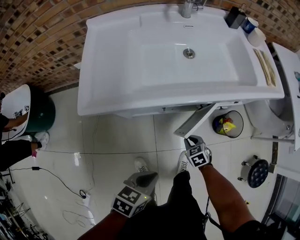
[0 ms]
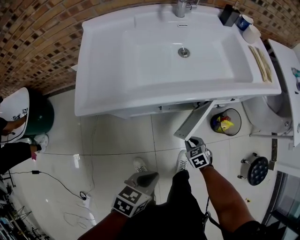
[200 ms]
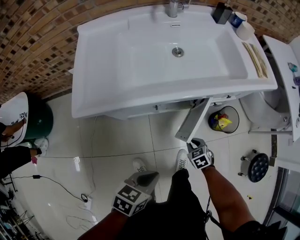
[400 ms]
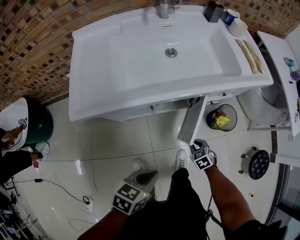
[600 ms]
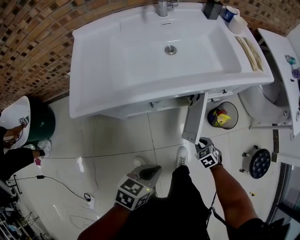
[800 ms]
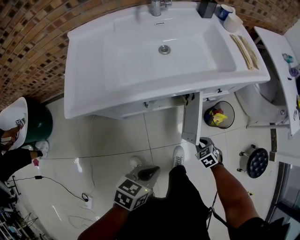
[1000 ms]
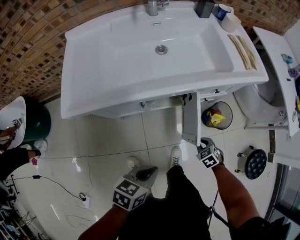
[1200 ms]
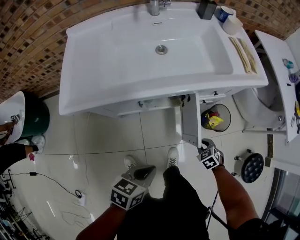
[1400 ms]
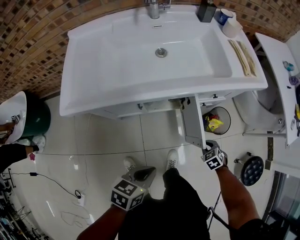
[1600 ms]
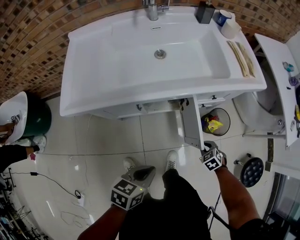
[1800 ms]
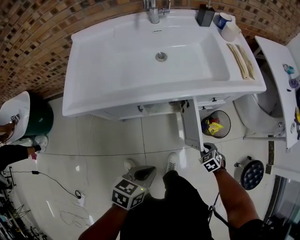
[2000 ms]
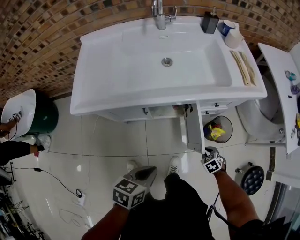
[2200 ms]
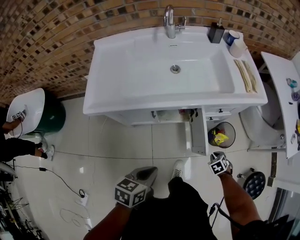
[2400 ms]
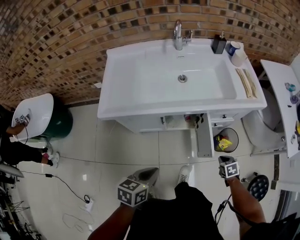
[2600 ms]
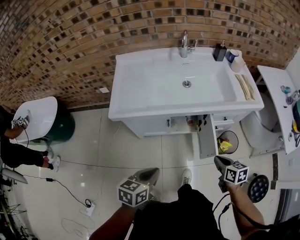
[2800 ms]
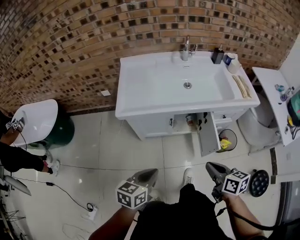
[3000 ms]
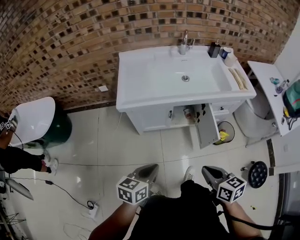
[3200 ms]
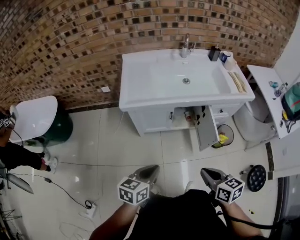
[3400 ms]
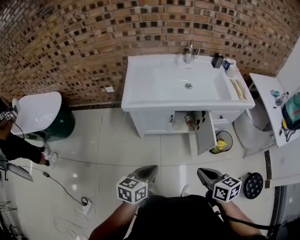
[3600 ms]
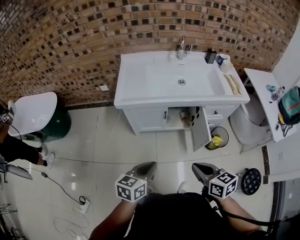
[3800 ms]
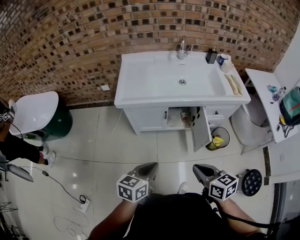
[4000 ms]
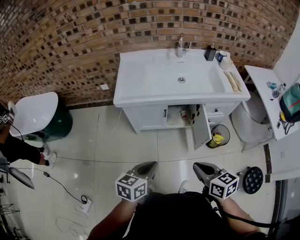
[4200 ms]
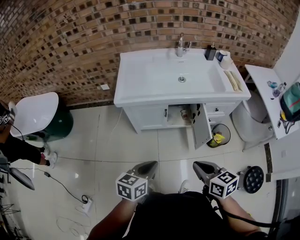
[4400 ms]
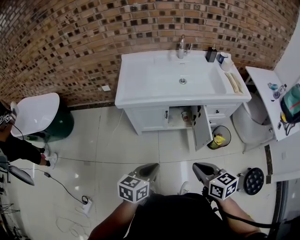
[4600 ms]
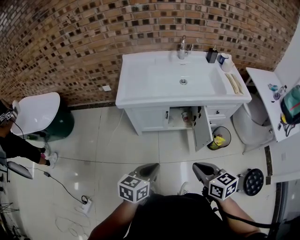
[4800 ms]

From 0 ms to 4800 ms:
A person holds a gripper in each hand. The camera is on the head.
From 0 ms to 1600 ms: The left gripper is displaced to the right by approximately 10 cm; the right gripper travels to the right by some 25 cm.
From 1600 ms to 3200 ms: The left gripper moves roughly 25 cm, and changes its angle by roughly 20 degrees, while the right gripper moves upward, approximately 40 cm, and tips its fingers upward by about 40 degrees.
From 3200 ms to 4800 ms: The left gripper goes about 5 cm to the right.

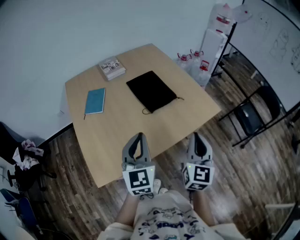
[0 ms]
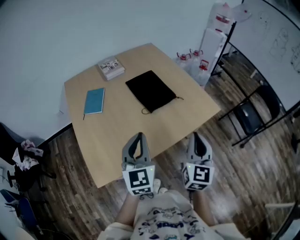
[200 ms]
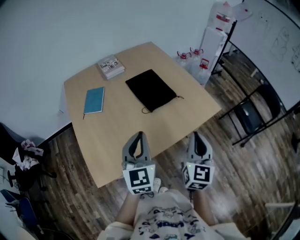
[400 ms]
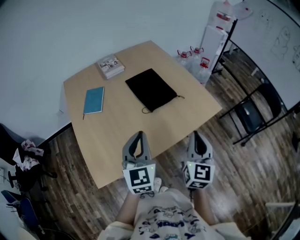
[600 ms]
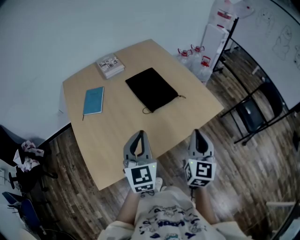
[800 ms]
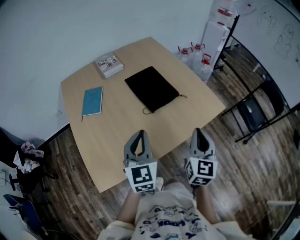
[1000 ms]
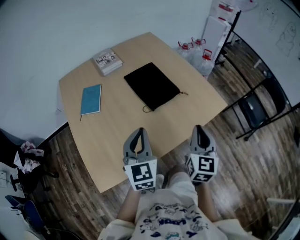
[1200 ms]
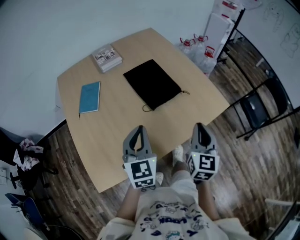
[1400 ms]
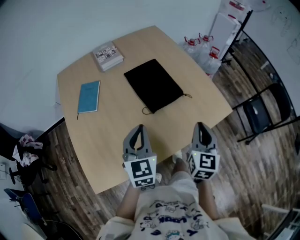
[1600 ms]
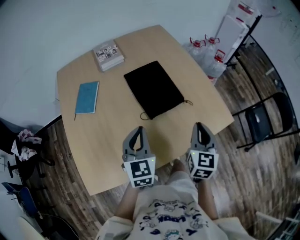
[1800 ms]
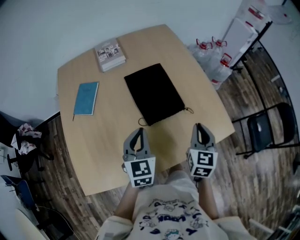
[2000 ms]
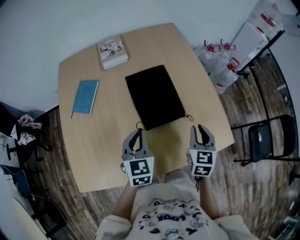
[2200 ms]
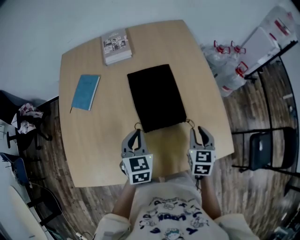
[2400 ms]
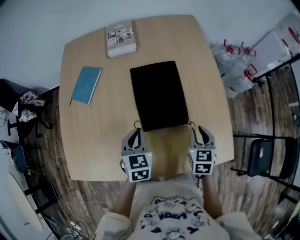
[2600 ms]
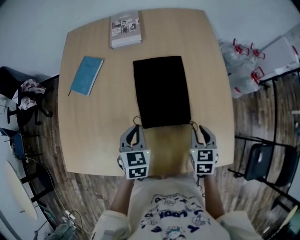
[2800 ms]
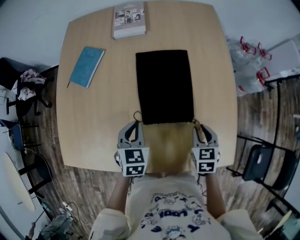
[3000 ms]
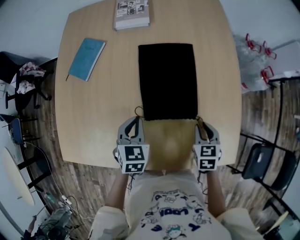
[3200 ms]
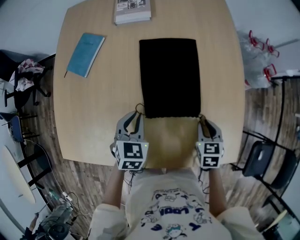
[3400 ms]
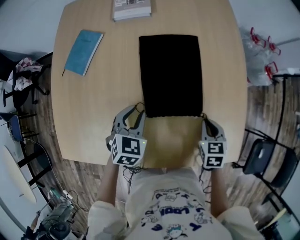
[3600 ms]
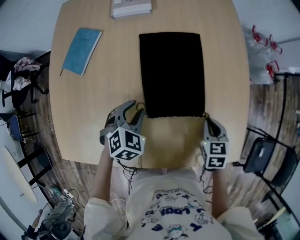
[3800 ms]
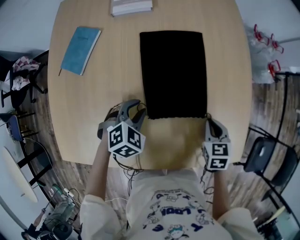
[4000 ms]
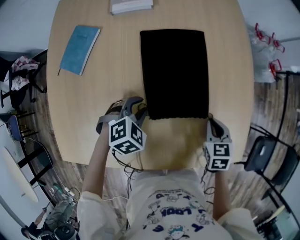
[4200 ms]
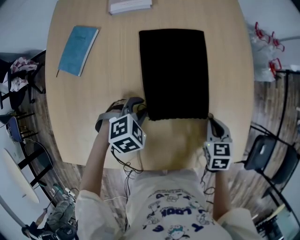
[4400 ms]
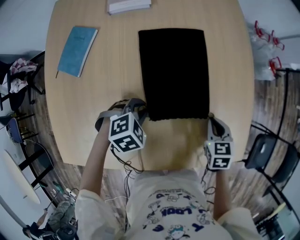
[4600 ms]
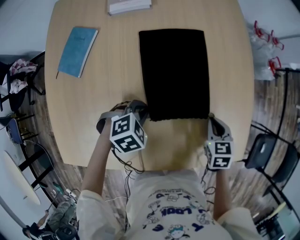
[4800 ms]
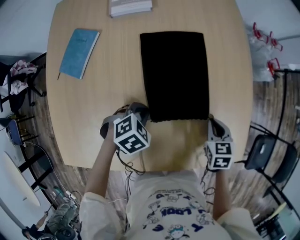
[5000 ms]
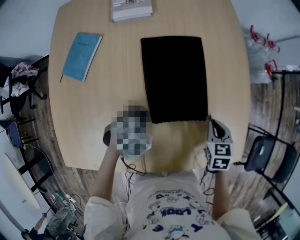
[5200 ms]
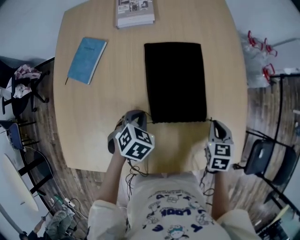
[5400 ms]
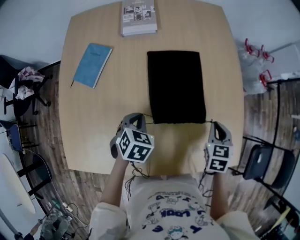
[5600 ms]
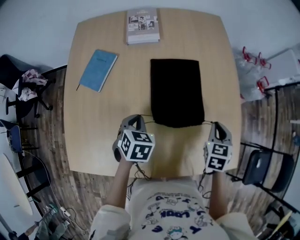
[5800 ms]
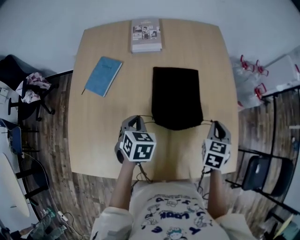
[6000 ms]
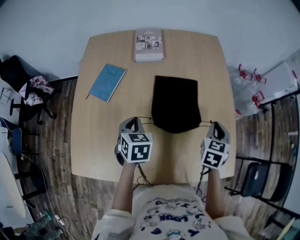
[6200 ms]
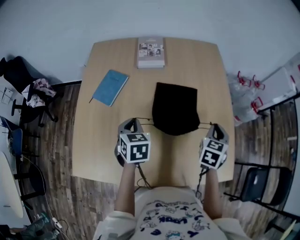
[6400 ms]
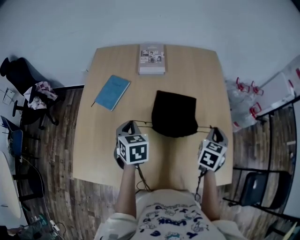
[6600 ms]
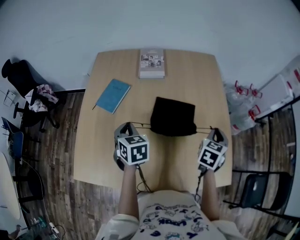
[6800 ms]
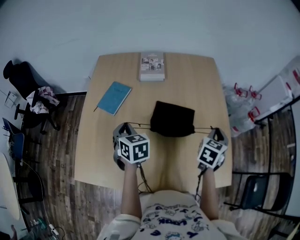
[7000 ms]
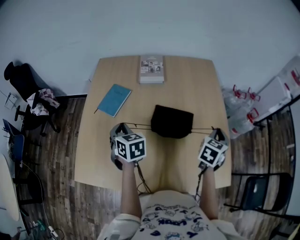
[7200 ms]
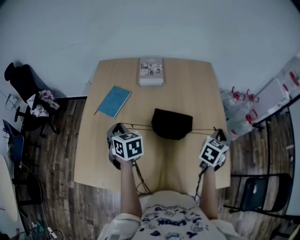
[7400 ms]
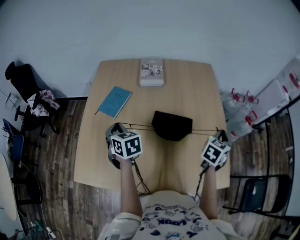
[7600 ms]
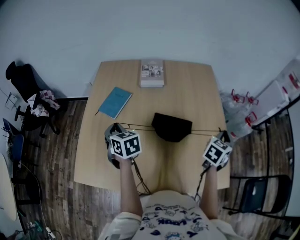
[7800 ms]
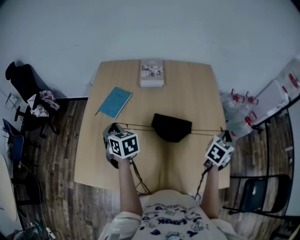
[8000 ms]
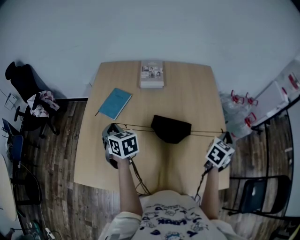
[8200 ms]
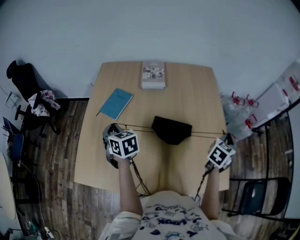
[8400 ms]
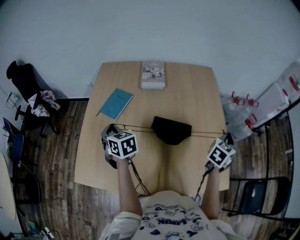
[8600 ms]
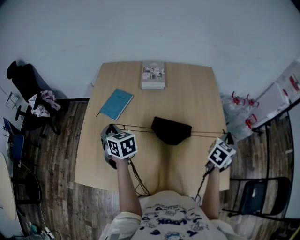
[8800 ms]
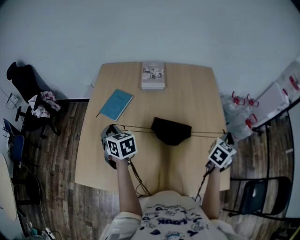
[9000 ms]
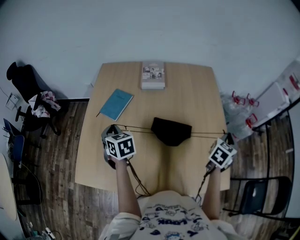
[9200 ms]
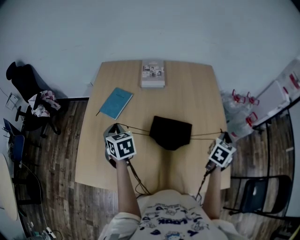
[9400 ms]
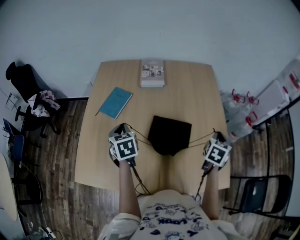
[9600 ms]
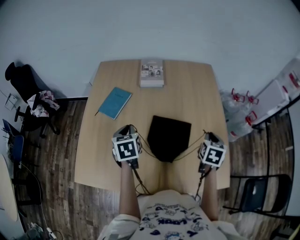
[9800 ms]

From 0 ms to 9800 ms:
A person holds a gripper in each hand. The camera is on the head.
From 0 ms to 1400 ms: The grippers both shift forward and downward by approximately 10 cm.
From 1400 ms to 2800 ms: The right gripper changes place by some 30 cm, and points its fingers some 30 degrees further downward, while the left gripper shifts by about 20 cm, and turns by approximately 40 degrees.
From 2800 ms to 4200 ms: The right gripper is displaced downward by some 5 cm. Meanwhile the left gripper moves downward, about 10 cm, rotates around the line of its fingers by roughly 40 degrees, clockwise from behind, and opens its fingers.
From 4200 ms to 5600 ms: The right gripper travels upward by about 5 cm, while the left gripper ends up approximately 5 cm from where it was, changes its angle by roughly 30 degrees, and closes up.
From 5600 ms to 7000 ms: The right gripper heads upward and forward, covering approximately 15 cm, and swivels about 20 degrees; the left gripper goes roughly 15 cm upward and to the left, and swivels roughly 40 degrees.
From 7000 ms to 8400 ms: The left gripper is displaced to the left by some 5 cm. Meanwhile the right gripper travels to the right by about 10 cm.
From 8400 ms to 9800 ms: The left gripper moves to the right, approximately 10 cm, and rotates approximately 30 degrees. The right gripper shifts roughly 10 cm to the left, and turns by about 30 degrees.

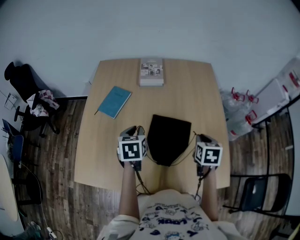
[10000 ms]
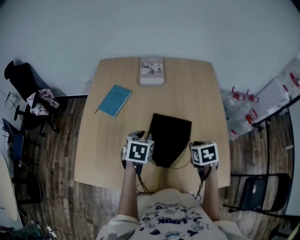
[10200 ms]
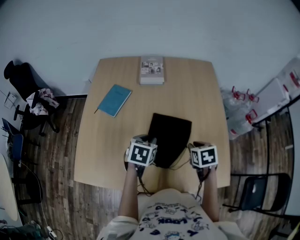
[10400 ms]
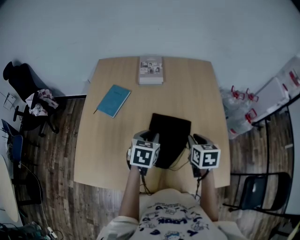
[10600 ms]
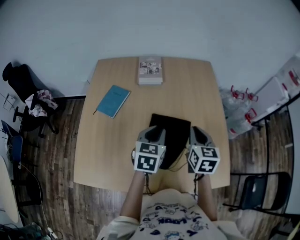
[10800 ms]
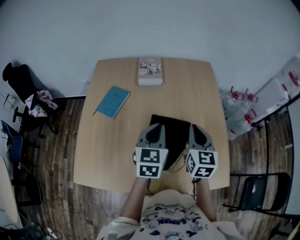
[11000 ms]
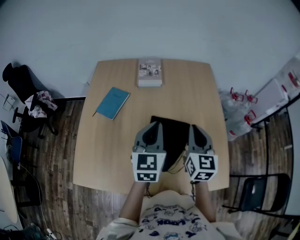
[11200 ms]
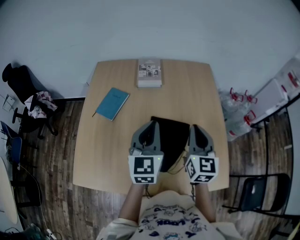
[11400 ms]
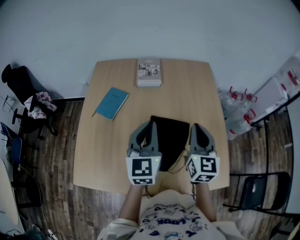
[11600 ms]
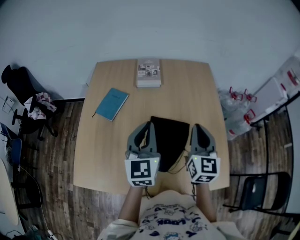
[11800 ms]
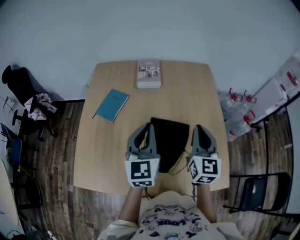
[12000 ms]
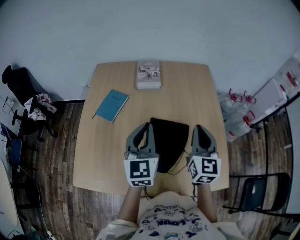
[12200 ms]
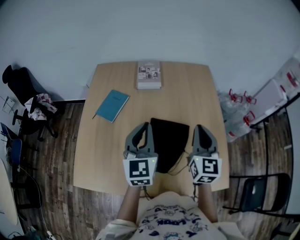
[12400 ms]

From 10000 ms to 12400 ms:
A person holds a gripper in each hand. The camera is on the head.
From 10000 ms to 11200 ms: The right gripper moves upward and to the left, about 15 cm, and tips its fingers upward by some 40 degrees. Meanwhile the left gripper goes approximately 15 cm upward and to the right, and points its fingers approximately 30 degrees further upward.
From 11200 ms to 12400 ms: There are only small adjustments of the grippers.

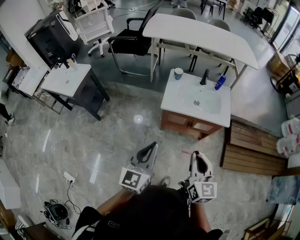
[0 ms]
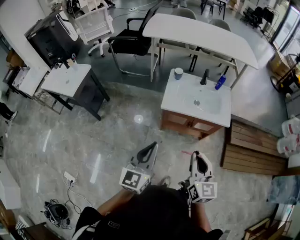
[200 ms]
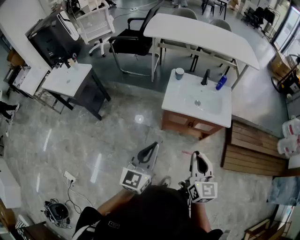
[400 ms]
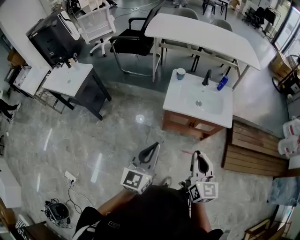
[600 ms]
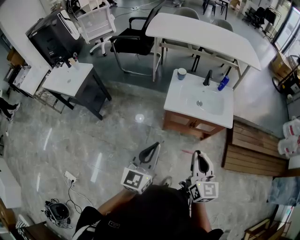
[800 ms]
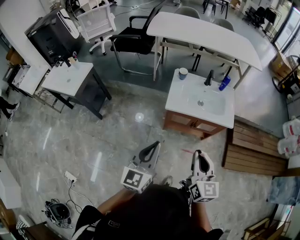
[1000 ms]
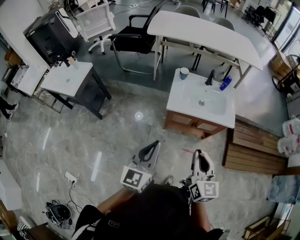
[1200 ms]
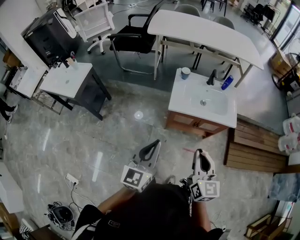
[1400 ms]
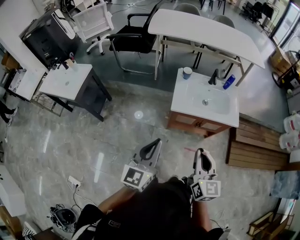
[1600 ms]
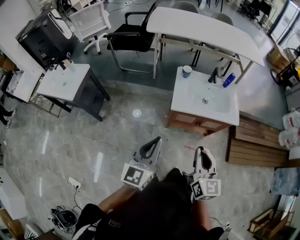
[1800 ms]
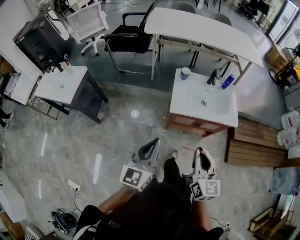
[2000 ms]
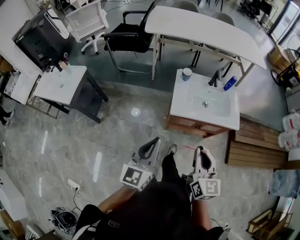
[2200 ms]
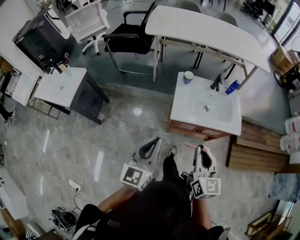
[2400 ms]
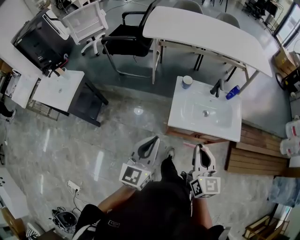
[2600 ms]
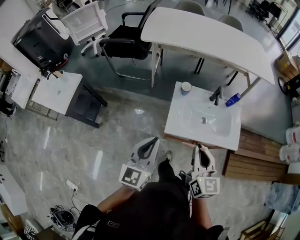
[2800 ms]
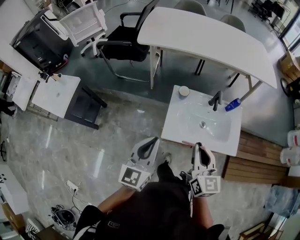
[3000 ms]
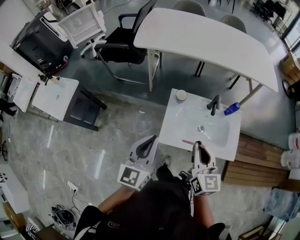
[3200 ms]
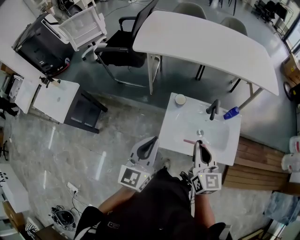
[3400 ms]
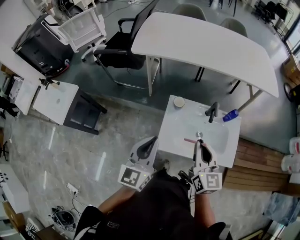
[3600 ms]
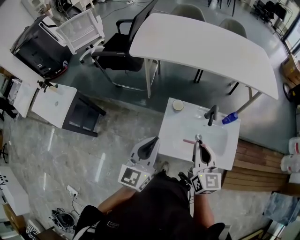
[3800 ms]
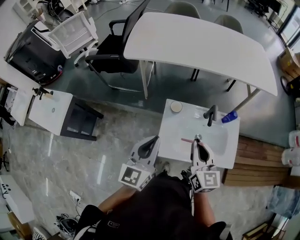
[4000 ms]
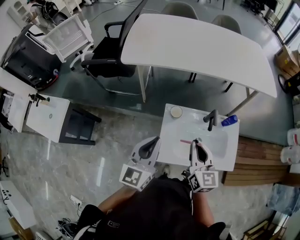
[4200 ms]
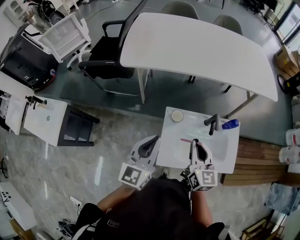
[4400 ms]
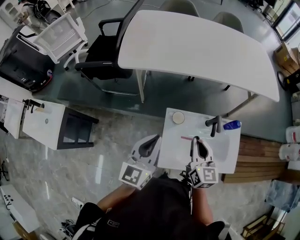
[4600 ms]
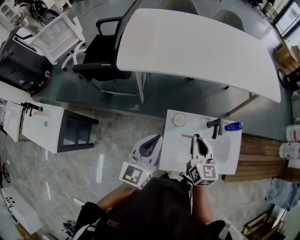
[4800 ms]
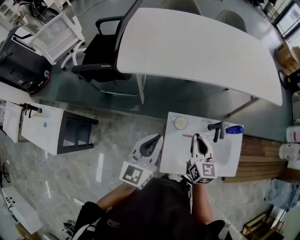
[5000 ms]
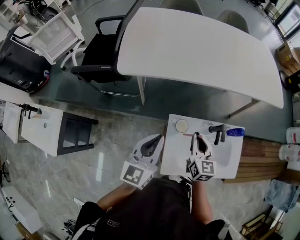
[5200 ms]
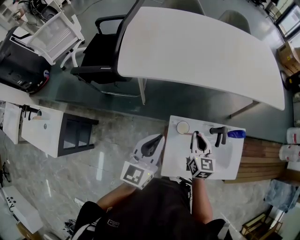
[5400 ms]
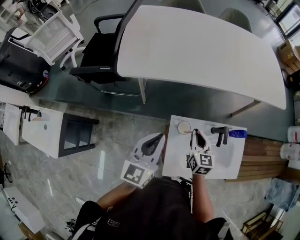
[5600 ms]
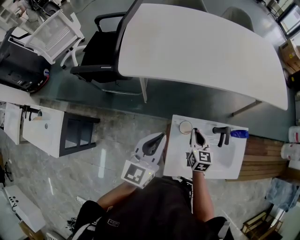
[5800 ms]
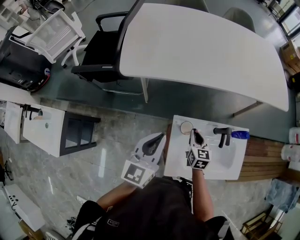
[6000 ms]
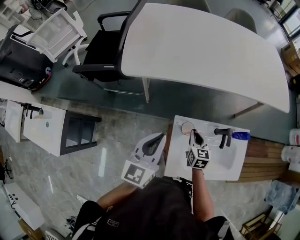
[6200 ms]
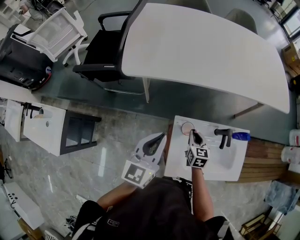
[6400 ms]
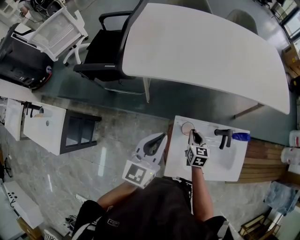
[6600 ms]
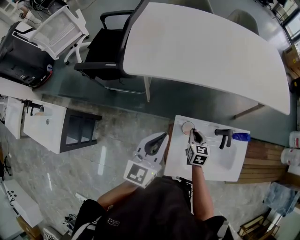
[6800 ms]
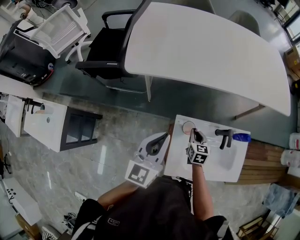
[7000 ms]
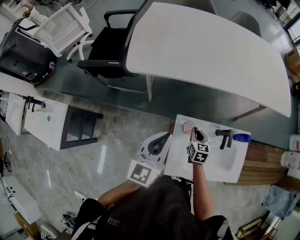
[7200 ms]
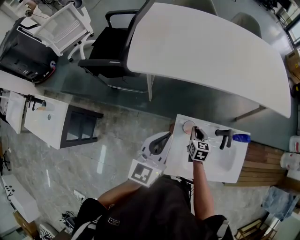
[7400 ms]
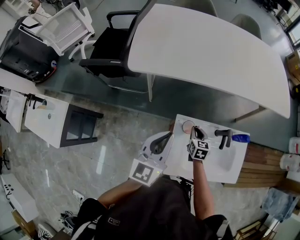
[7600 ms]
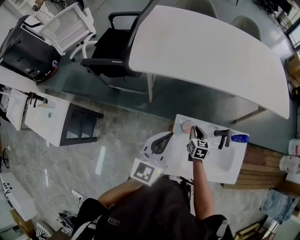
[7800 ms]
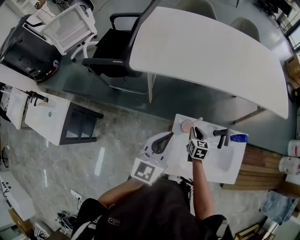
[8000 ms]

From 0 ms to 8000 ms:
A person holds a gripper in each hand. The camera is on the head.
From 0 ms to 1600 ms: Both grippers travel together to the left, approximately 10 cm.
From 1600 ms to 3200 ms: Both grippers move forward, approximately 35 cm.
From 3200 ms to 4800 ms: Both grippers travel together forward, about 25 cm.
From 4800 ms to 6400 ms: The left gripper goes roughly 5 cm forward; the right gripper heads downward and forward, covering approximately 20 cm.
From 6400 ms to 8000 ms: There are only small adjustments of the grippers.
